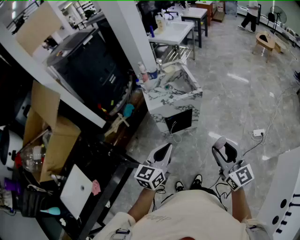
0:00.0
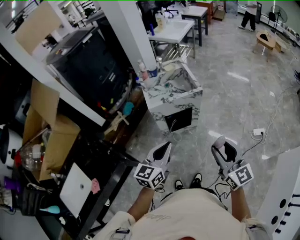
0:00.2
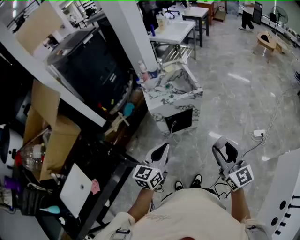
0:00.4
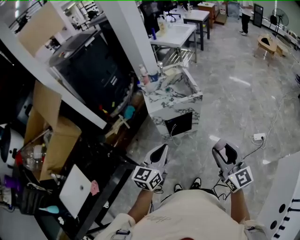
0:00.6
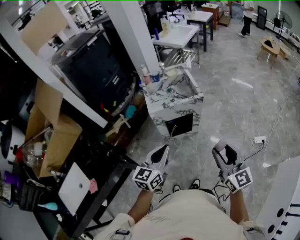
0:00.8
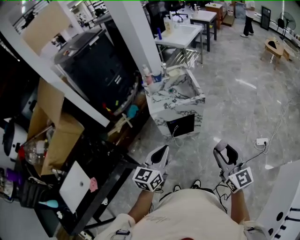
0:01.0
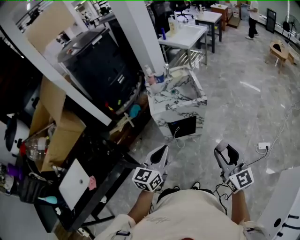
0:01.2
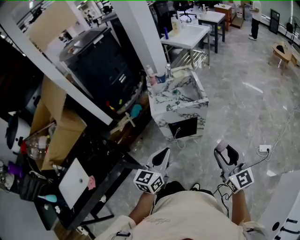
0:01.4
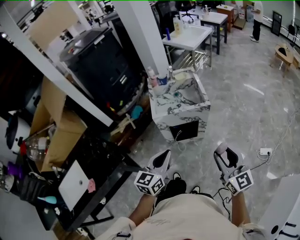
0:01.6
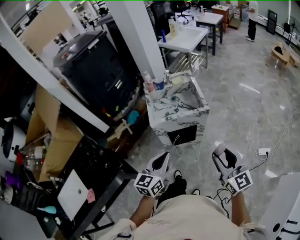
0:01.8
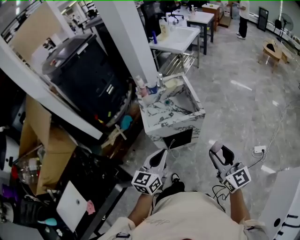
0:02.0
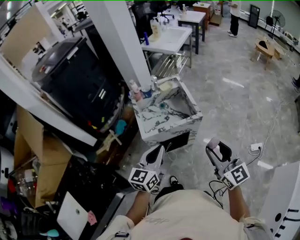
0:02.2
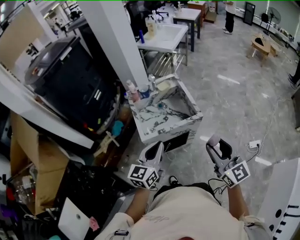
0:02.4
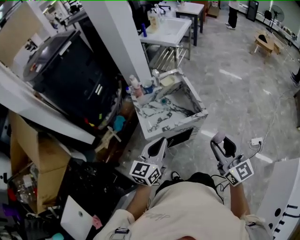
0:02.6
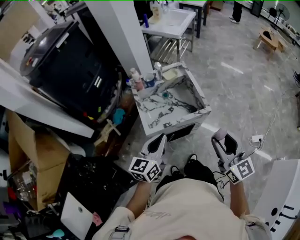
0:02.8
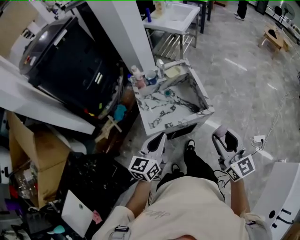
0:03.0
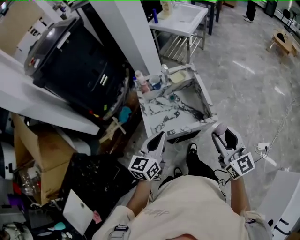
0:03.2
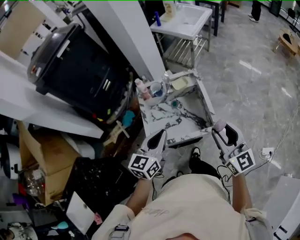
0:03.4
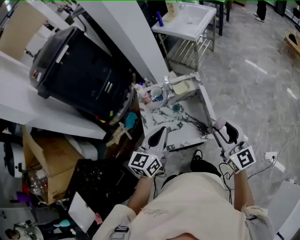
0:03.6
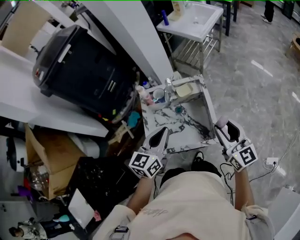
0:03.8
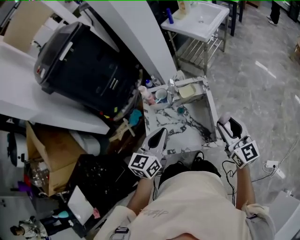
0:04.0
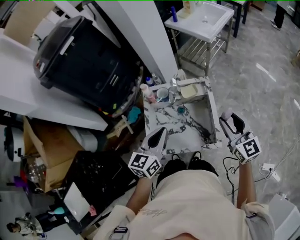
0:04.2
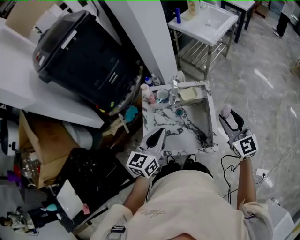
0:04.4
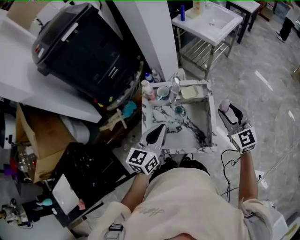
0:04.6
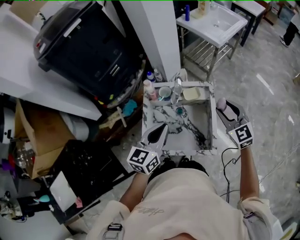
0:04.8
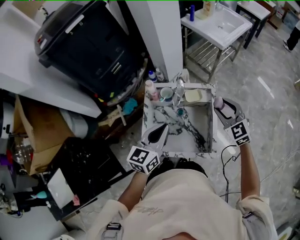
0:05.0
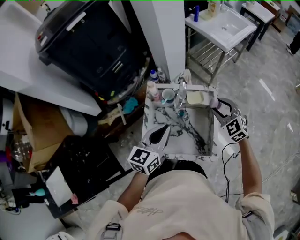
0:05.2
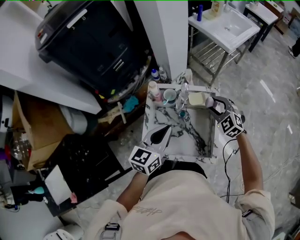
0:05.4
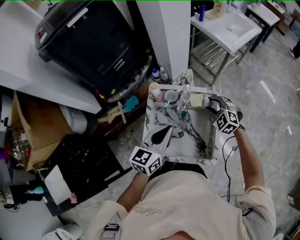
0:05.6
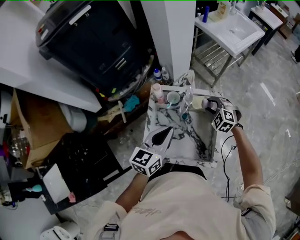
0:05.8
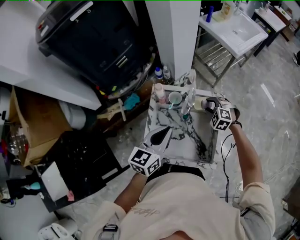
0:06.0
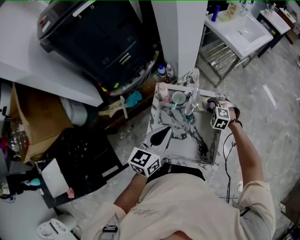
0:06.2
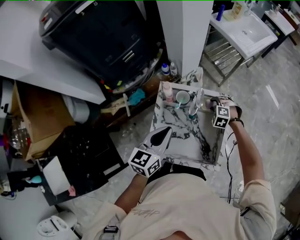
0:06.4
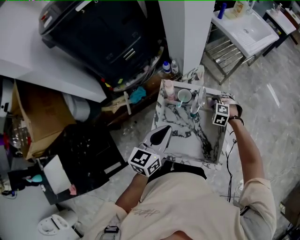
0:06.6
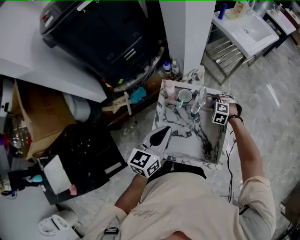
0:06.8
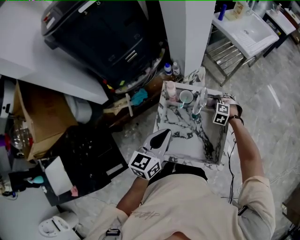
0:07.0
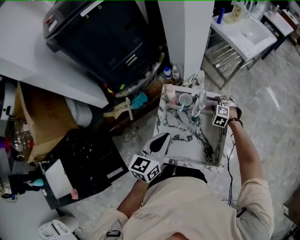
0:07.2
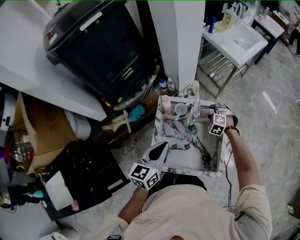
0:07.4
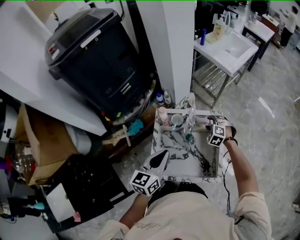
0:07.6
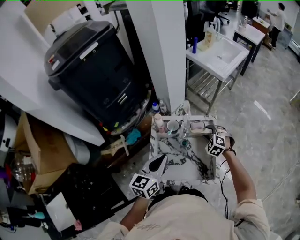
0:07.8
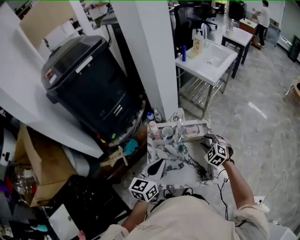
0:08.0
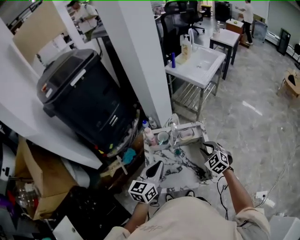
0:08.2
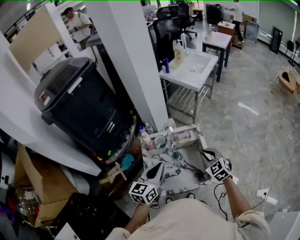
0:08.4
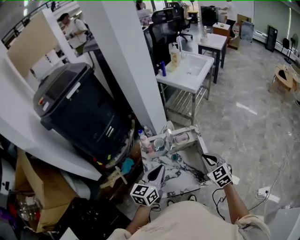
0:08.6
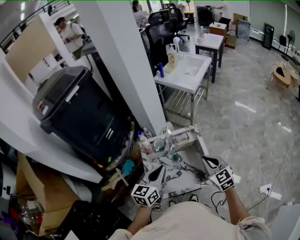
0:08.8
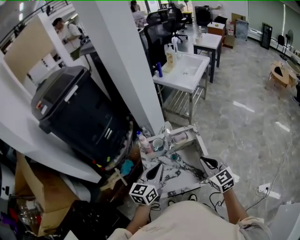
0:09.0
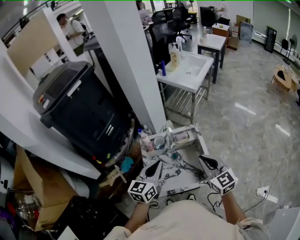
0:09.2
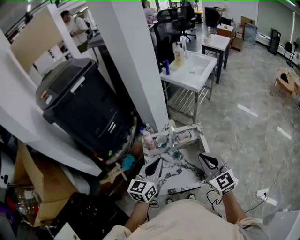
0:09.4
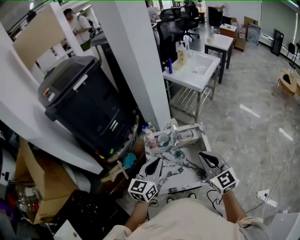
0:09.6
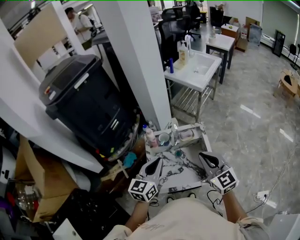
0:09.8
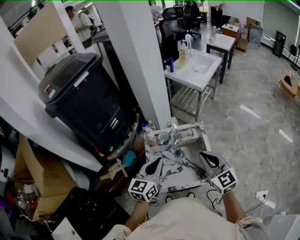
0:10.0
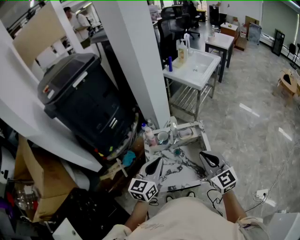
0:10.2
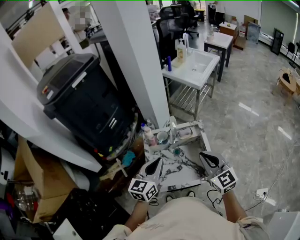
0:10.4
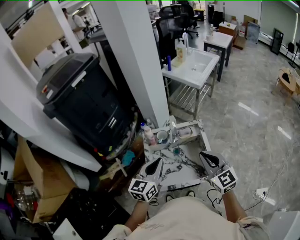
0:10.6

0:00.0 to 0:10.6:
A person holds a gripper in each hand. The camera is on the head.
0:00.0 to 0:01.6: The left gripper is displaced forward by some 5 cm. Meanwhile the right gripper moves forward, approximately 10 cm.
0:01.6 to 0:03.0: The two grippers go about 25 cm forward.
0:03.0 to 0:04.6: The right gripper is displaced forward by approximately 30 cm, and changes its angle by roughly 30 degrees, while the left gripper moves forward, roughly 20 cm.
0:04.6 to 0:06.0: The left gripper shifts by roughly 5 cm; the right gripper goes some 25 cm downward, forward and to the left, and angles its fingers downward, by some 40 degrees.
0:06.0 to 0:07.6: The right gripper travels downward and back again, about 10 cm each way.
0:07.6 to 0:09.0: The right gripper heads backward and upward, covering roughly 30 cm, rotates around the line of its fingers by some 50 degrees, clockwise from behind, and closes its fingers.
0:09.0 to 0:10.6: The right gripper moves upward, approximately 5 cm.

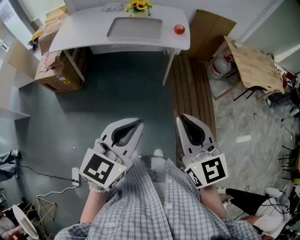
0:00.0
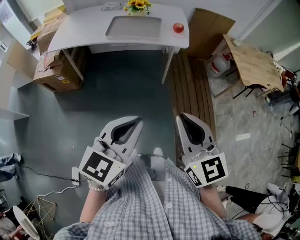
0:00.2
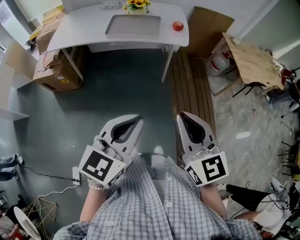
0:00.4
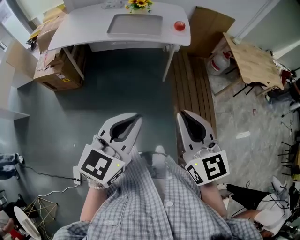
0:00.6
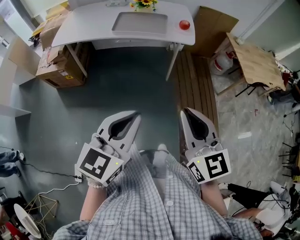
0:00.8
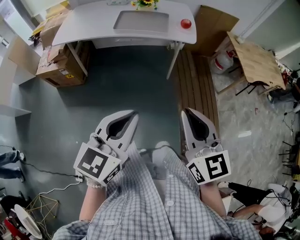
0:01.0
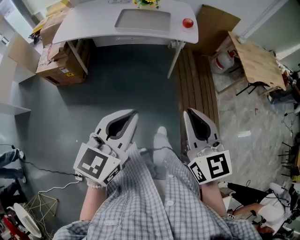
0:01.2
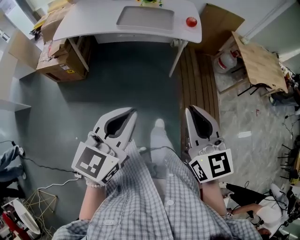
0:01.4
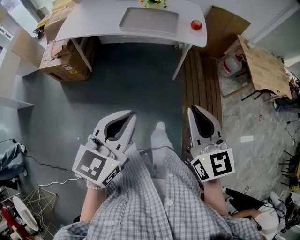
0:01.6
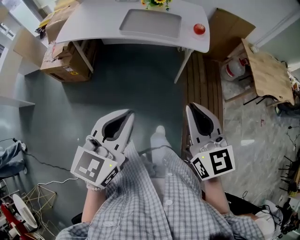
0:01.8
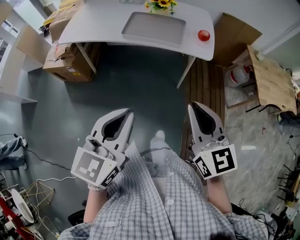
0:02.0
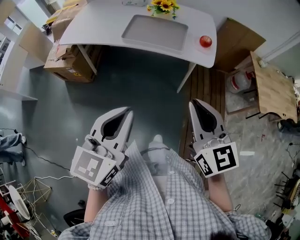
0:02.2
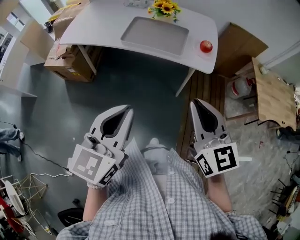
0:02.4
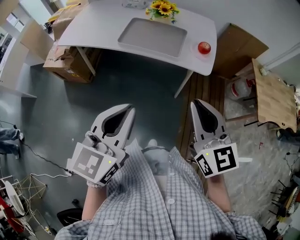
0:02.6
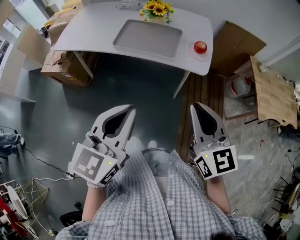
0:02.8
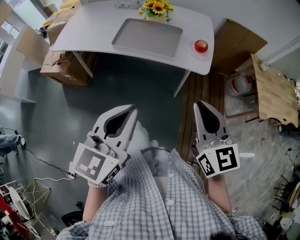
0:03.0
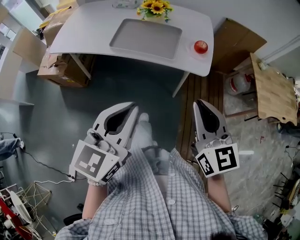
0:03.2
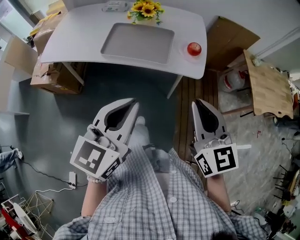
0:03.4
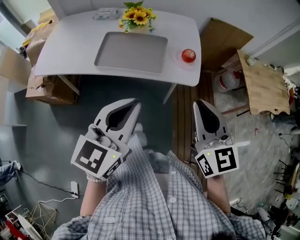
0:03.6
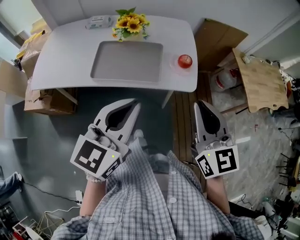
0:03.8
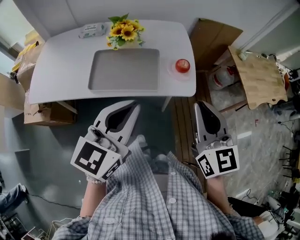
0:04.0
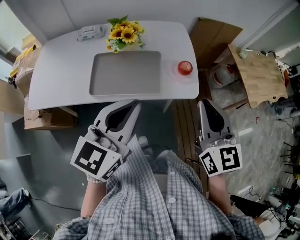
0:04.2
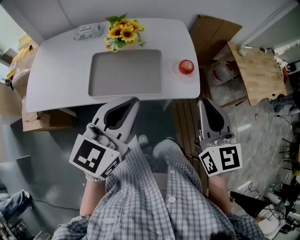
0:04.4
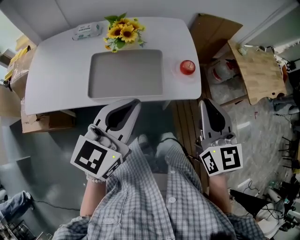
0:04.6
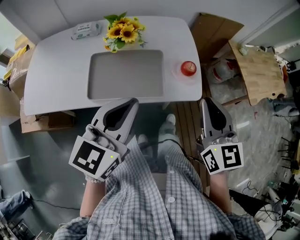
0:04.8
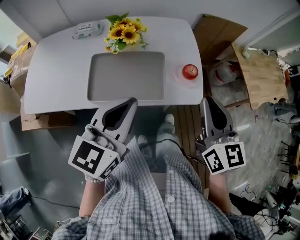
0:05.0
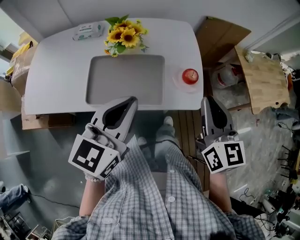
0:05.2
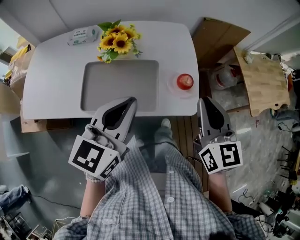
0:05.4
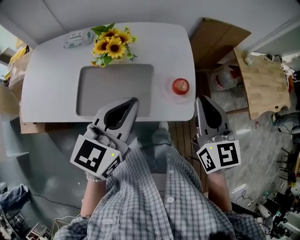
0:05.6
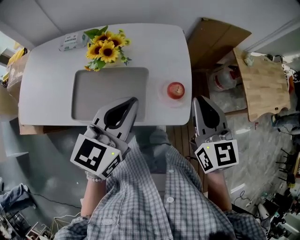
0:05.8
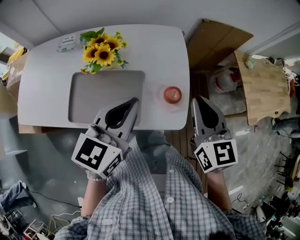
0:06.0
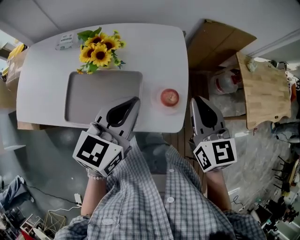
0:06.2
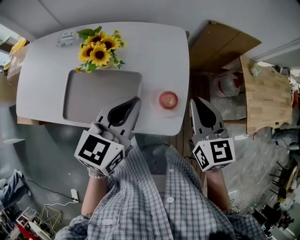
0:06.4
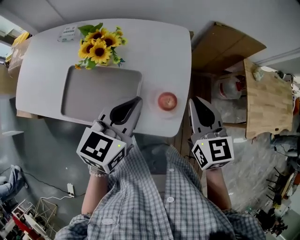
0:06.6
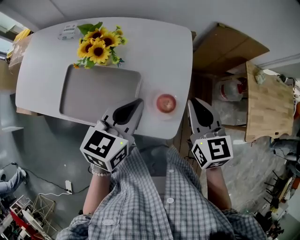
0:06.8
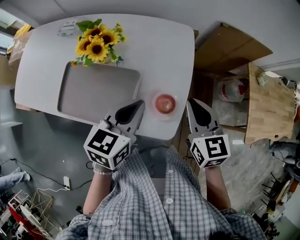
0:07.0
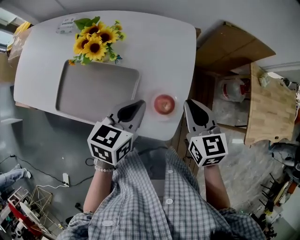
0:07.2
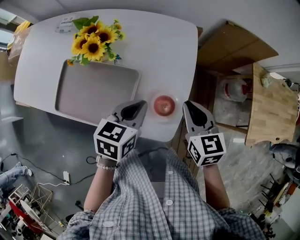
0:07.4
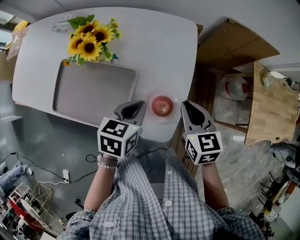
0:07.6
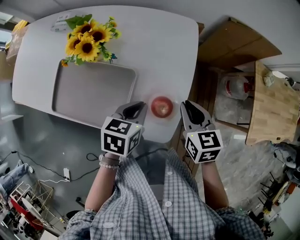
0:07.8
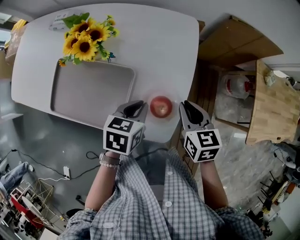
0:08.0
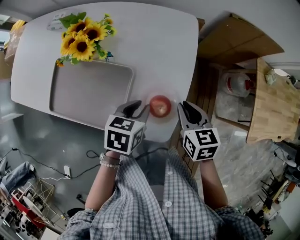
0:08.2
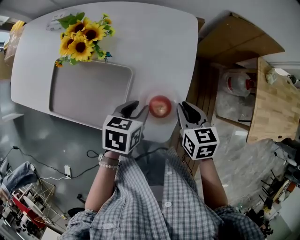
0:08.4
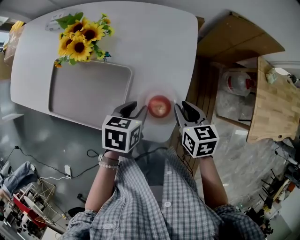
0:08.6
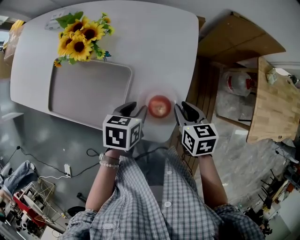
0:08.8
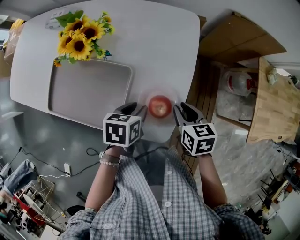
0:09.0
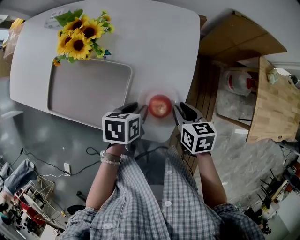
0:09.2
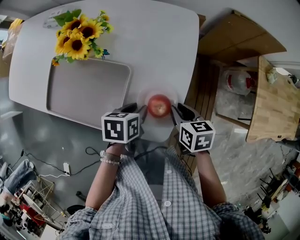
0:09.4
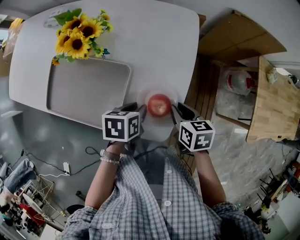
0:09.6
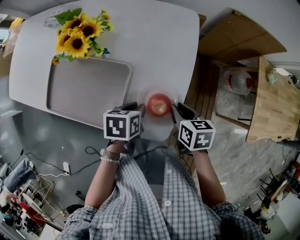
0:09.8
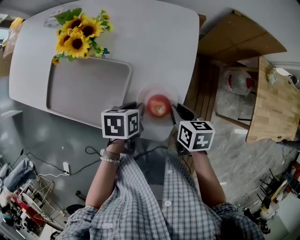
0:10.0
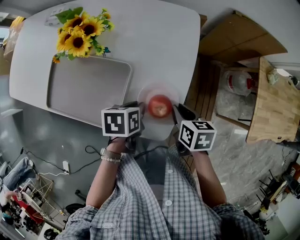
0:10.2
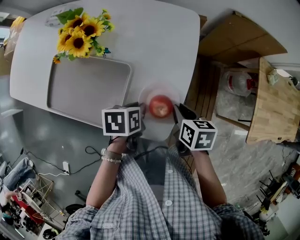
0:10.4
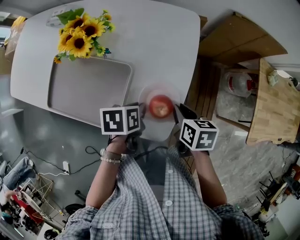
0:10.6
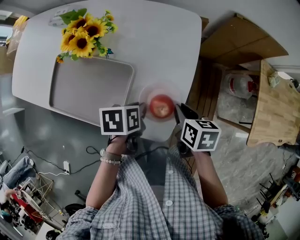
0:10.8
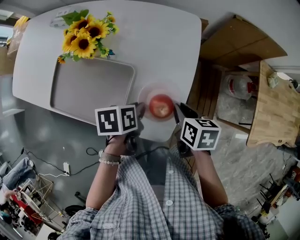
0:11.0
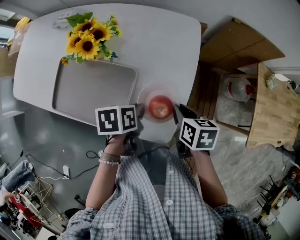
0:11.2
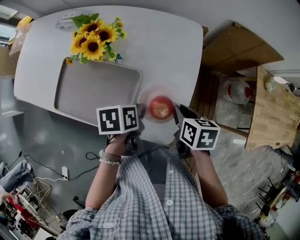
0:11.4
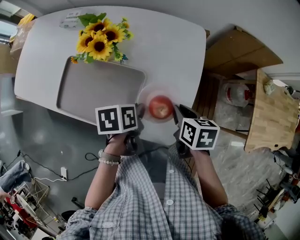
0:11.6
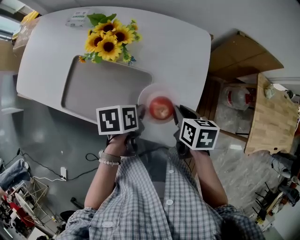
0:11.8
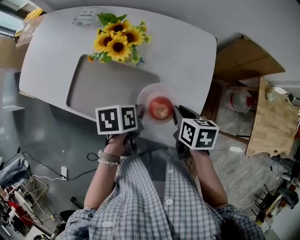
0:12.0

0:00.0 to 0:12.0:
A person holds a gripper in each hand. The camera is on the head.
0:00.0 to 0:01.6: The right gripper changes place by roughly 5 cm; the left gripper goes approximately 10 cm to the left.
0:01.6 to 0:03.0: Both grippers travel together forward and to the right, about 20 cm.
0:03.0 to 0:04.4: Both grippers travel together forward, about 20 cm. The right gripper turns by approximately 20 degrees, while the left gripper rotates approximately 20 degrees.
0:04.4 to 0:06.0: The two grippers go approximately 20 cm forward.
0:06.0 to 0:07.6: The left gripper moves downward, some 20 cm, and rotates about 30 degrees. The right gripper shifts approximately 15 cm downward and forward, and rotates roughly 30 degrees.
0:07.6 to 0:09.0: The grippers both shift downward by some 10 cm. The left gripper rotates roughly 20 degrees, and opens its fingers.
0:09.0 to 0:10.4: The grippers make only small movements.
0:10.4 to 0:12.0: The two grippers go some 10 cm to the left and upward.

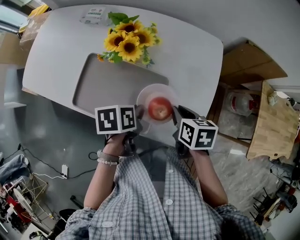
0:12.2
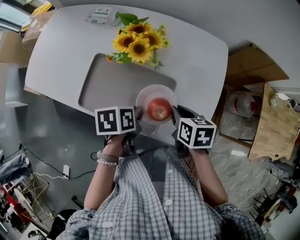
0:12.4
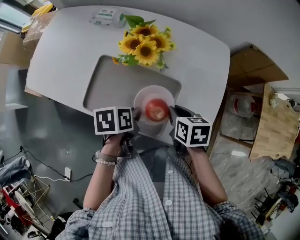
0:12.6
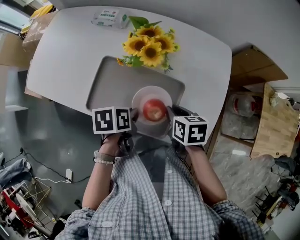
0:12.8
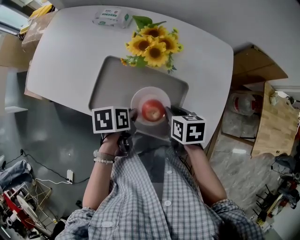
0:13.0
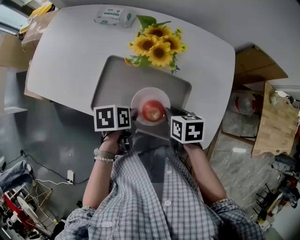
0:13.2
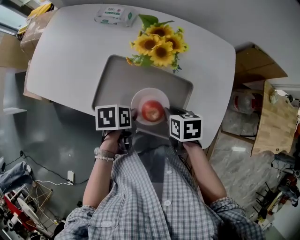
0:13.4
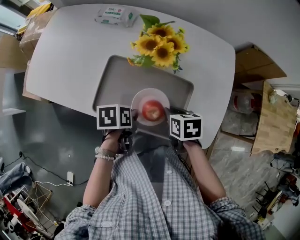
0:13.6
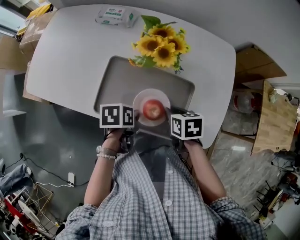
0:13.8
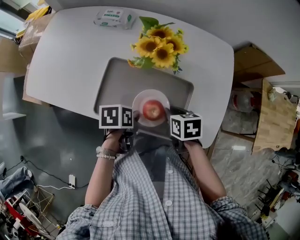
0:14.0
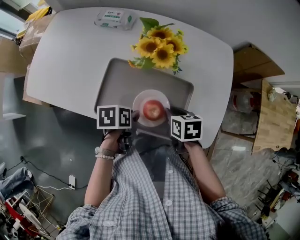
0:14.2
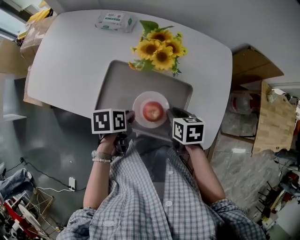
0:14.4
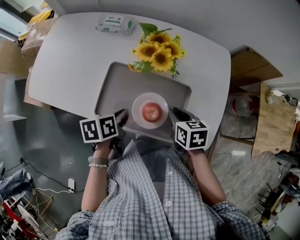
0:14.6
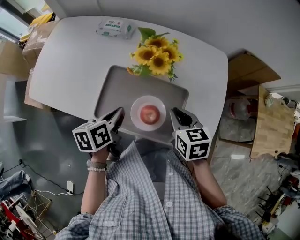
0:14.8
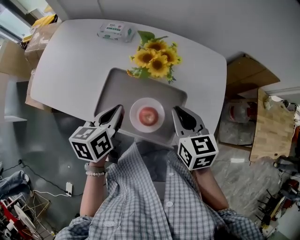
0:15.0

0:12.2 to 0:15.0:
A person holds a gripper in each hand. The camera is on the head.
0:12.2 to 0:13.6: The grippers both shift to the left by about 15 cm.
0:13.6 to 0:15.0: The two grippers go roughly 15 cm upward. The right gripper swivels about 30 degrees; the left gripper swivels roughly 40 degrees.
